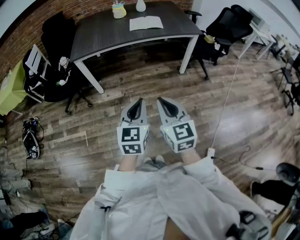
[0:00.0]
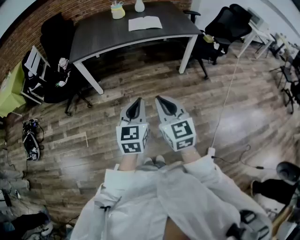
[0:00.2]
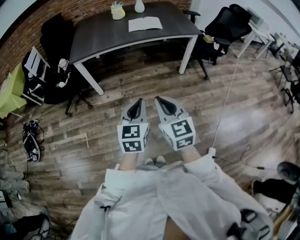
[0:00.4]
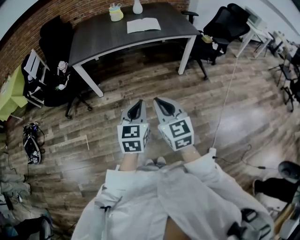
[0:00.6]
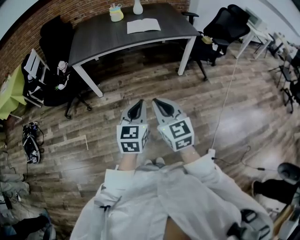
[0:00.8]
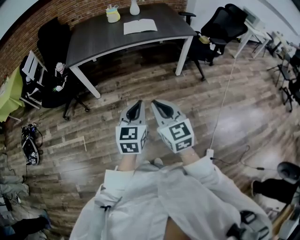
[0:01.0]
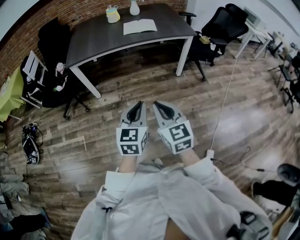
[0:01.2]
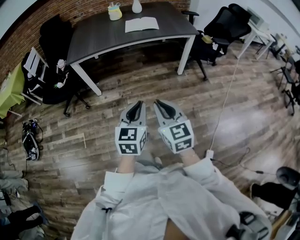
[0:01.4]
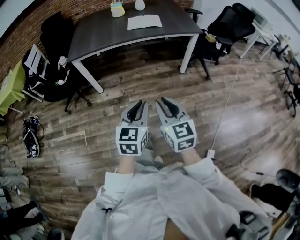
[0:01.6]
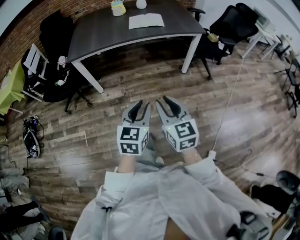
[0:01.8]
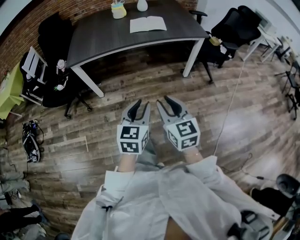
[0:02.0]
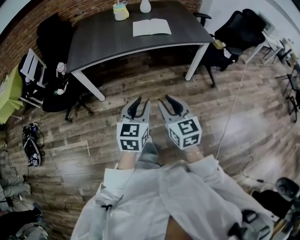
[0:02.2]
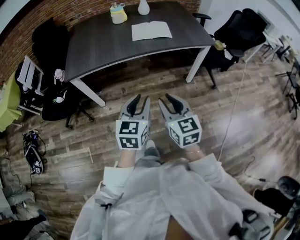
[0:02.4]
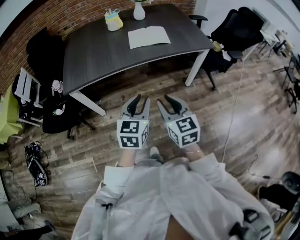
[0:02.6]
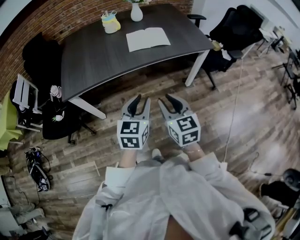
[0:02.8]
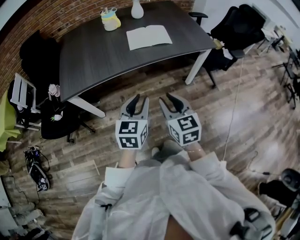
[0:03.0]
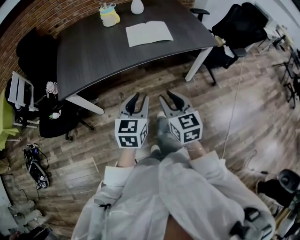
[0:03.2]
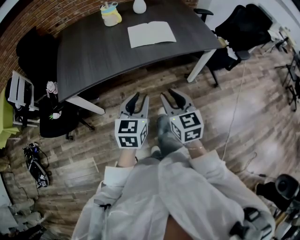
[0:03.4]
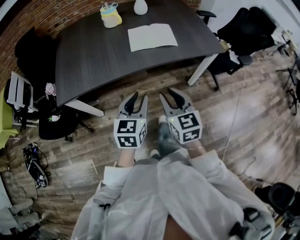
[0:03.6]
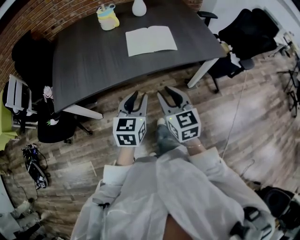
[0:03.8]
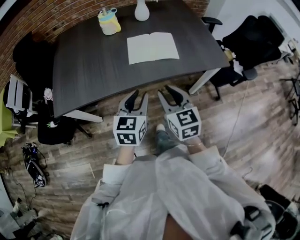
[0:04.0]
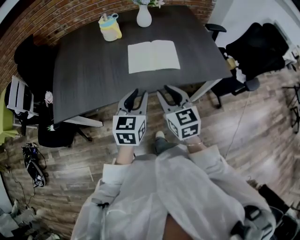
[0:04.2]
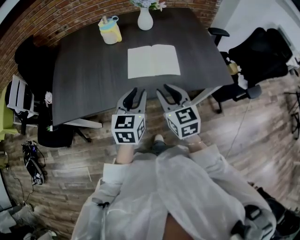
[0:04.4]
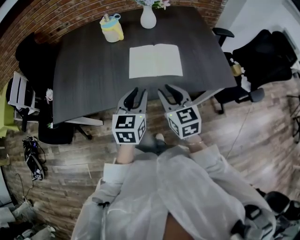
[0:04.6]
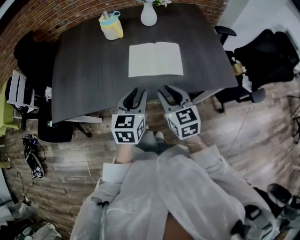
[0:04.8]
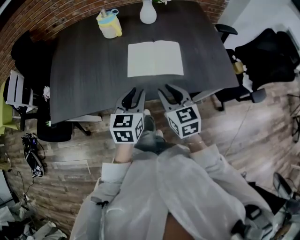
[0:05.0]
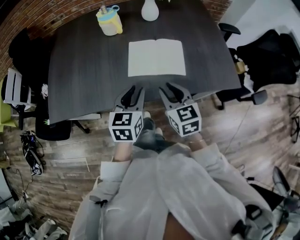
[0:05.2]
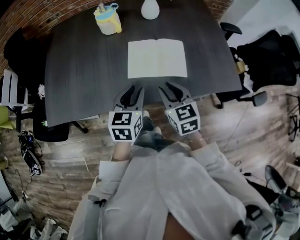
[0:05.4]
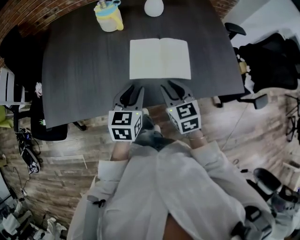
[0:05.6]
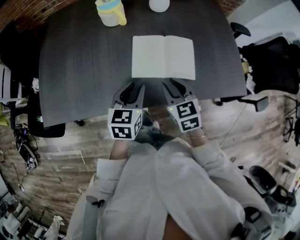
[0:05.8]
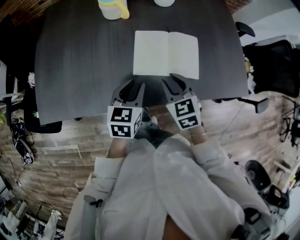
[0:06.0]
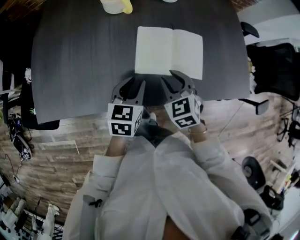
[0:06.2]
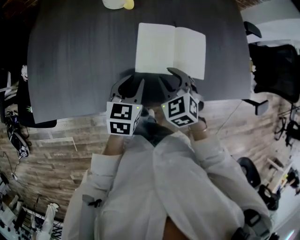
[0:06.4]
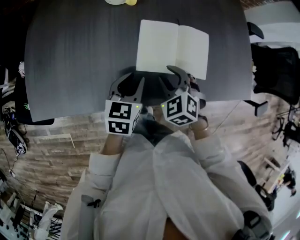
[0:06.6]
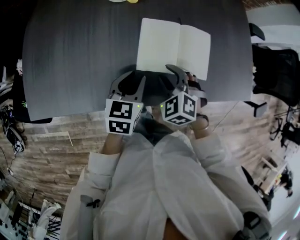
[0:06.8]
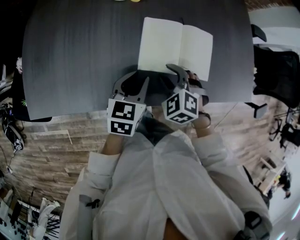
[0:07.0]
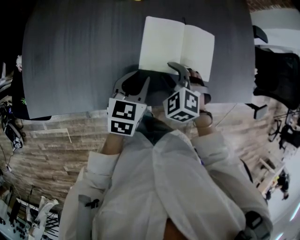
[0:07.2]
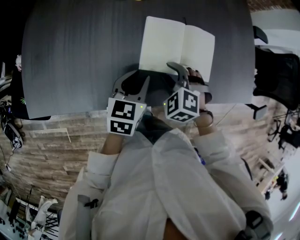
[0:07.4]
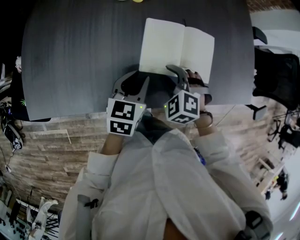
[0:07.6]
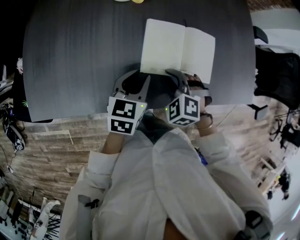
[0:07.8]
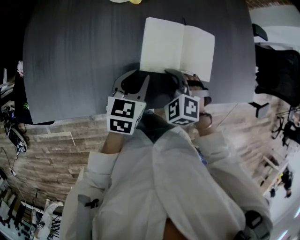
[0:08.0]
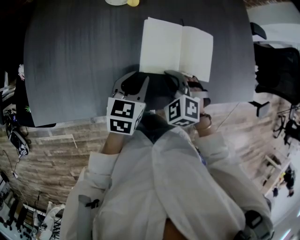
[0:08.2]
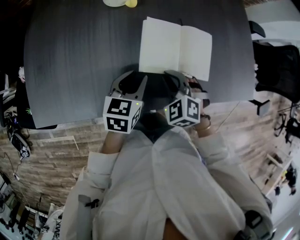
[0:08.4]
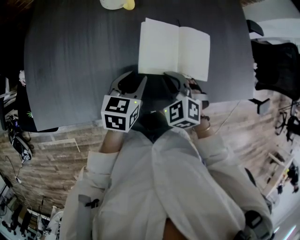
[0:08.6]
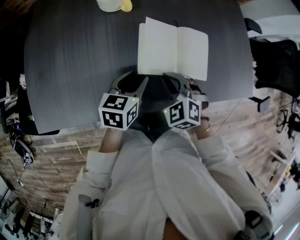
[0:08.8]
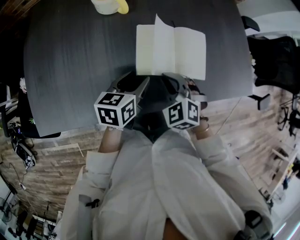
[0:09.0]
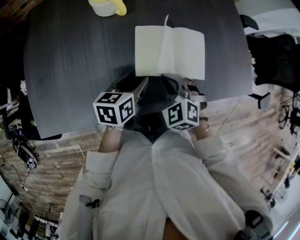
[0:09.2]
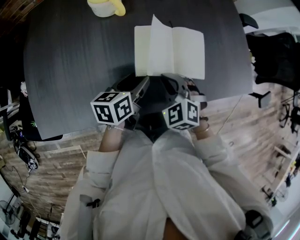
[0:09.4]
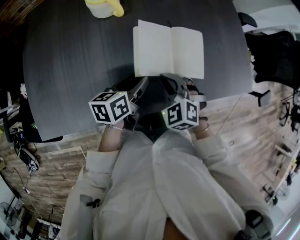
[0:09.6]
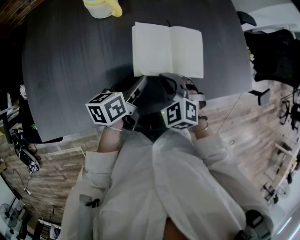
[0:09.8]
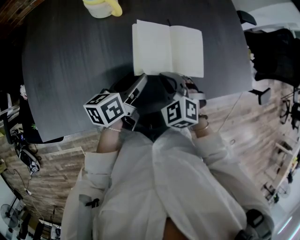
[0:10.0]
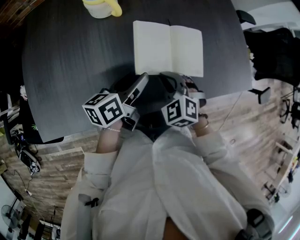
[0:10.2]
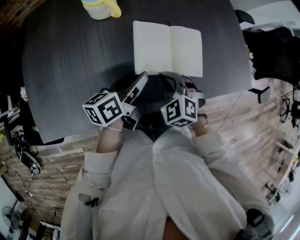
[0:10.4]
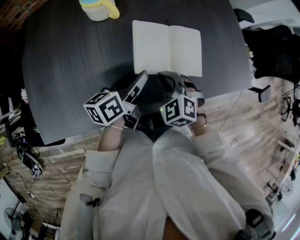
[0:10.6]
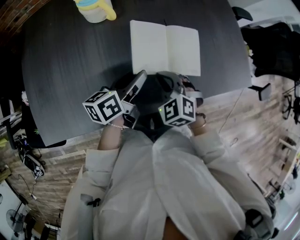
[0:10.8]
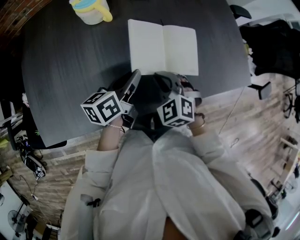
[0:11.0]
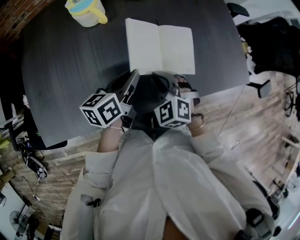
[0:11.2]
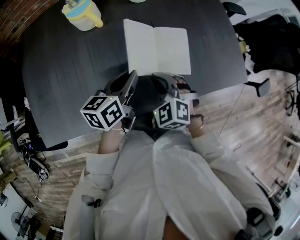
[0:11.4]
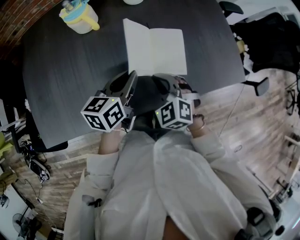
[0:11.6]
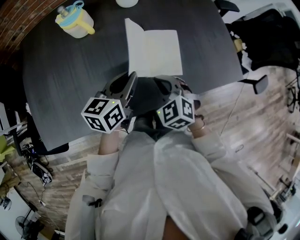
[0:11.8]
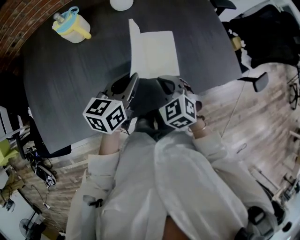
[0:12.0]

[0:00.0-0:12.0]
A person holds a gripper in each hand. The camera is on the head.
0:00.0 to 0:01.6: The grippers move only a little.
0:01.6 to 0:03.0: Both grippers move forward, roughly 35 cm.
0:03.0 to 0:04.4: The two grippers go some 30 cm forward.
0:04.4 to 0:06.0: Both grippers travel together forward and downward, roughly 20 cm. The right gripper turns by roughly 20 degrees.
0:06.0 to 0:07.6: The right gripper shifts roughly 5 cm downward, and twists roughly 40 degrees counterclockwise, seen from behind; the left gripper moves some 5 cm.
0:07.6 to 0:09.0: The left gripper opens; the right gripper closes up.
0:09.0 to 0:10.4: The left gripper swivels approximately 30 degrees.
0:10.4 to 0:12.0: The left gripper heads to the right and upward, covering roughly 10 cm, rotates about 30 degrees, and closes up. Meanwhile the right gripper is displaced to the right by about 10 cm.

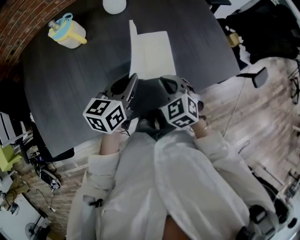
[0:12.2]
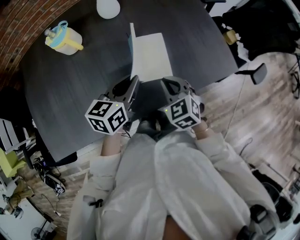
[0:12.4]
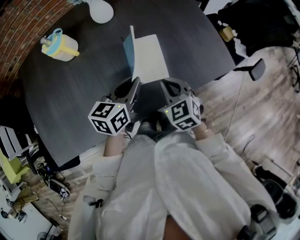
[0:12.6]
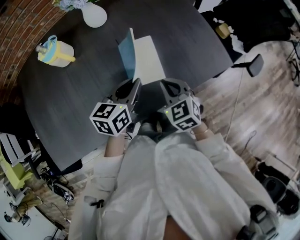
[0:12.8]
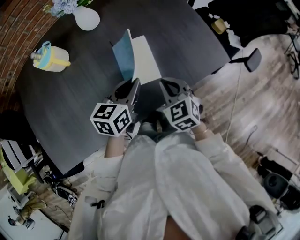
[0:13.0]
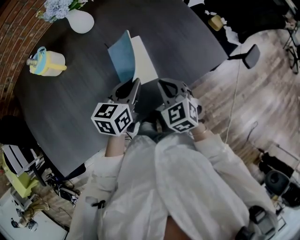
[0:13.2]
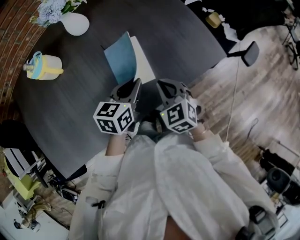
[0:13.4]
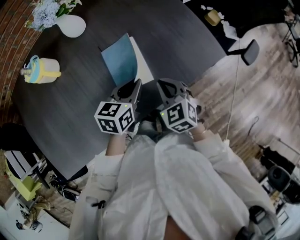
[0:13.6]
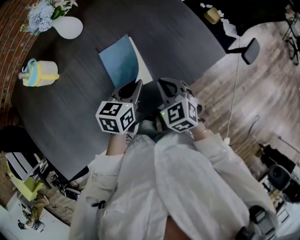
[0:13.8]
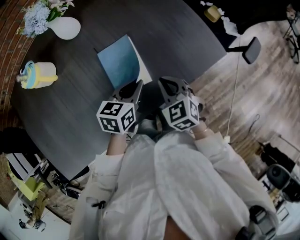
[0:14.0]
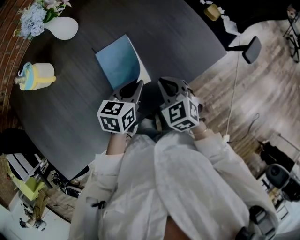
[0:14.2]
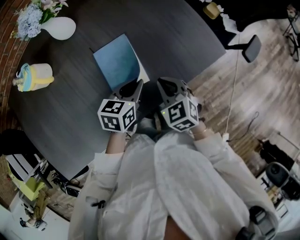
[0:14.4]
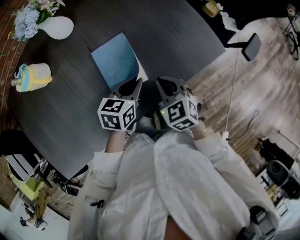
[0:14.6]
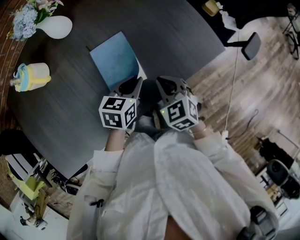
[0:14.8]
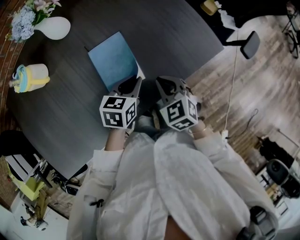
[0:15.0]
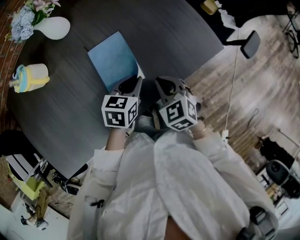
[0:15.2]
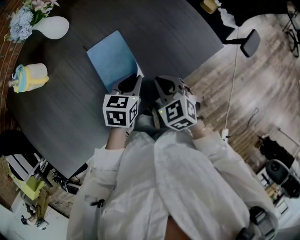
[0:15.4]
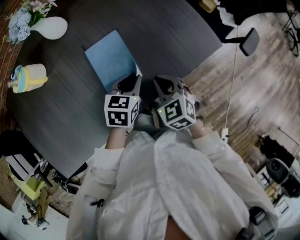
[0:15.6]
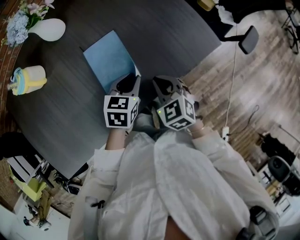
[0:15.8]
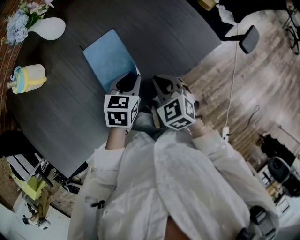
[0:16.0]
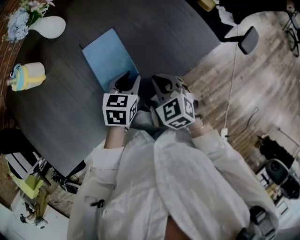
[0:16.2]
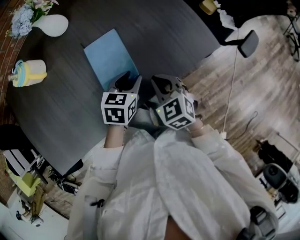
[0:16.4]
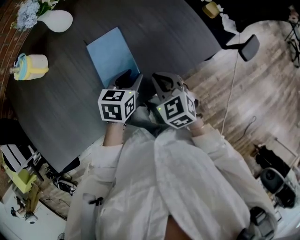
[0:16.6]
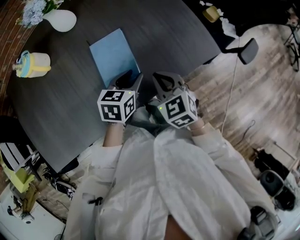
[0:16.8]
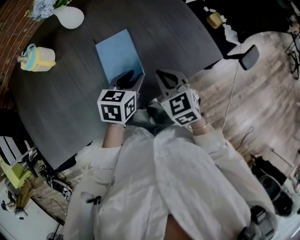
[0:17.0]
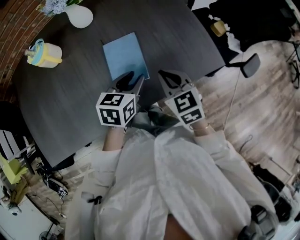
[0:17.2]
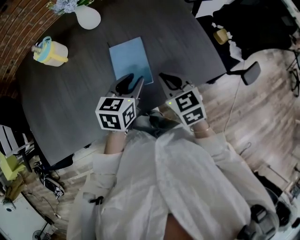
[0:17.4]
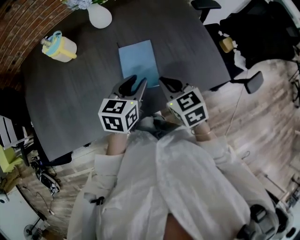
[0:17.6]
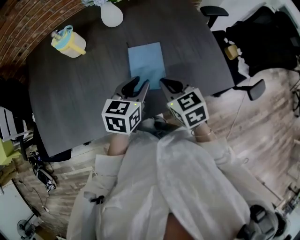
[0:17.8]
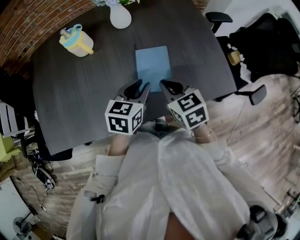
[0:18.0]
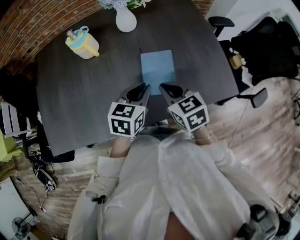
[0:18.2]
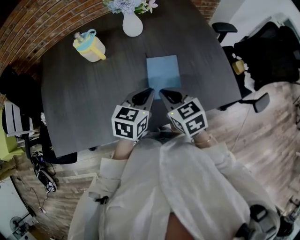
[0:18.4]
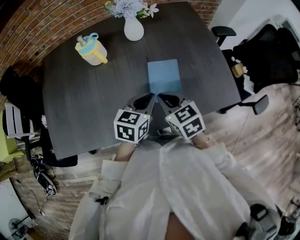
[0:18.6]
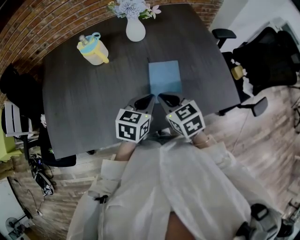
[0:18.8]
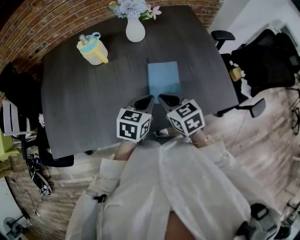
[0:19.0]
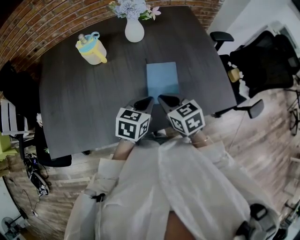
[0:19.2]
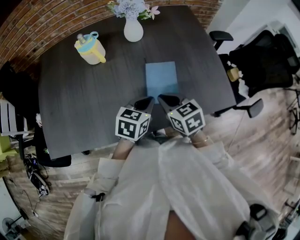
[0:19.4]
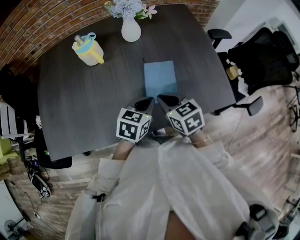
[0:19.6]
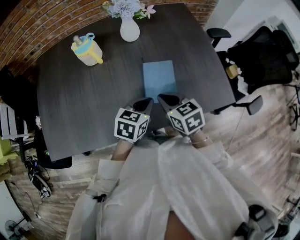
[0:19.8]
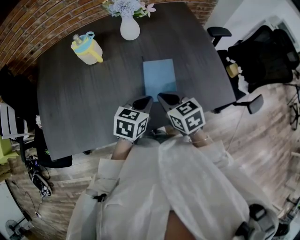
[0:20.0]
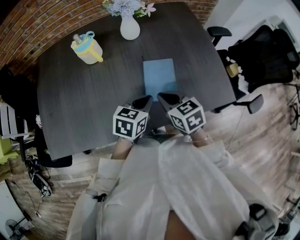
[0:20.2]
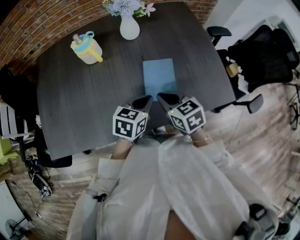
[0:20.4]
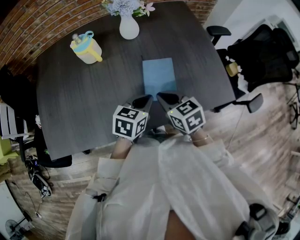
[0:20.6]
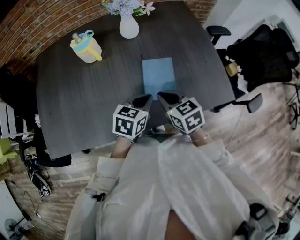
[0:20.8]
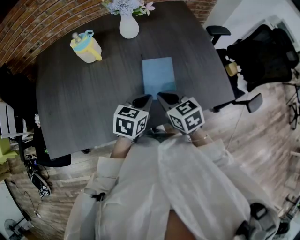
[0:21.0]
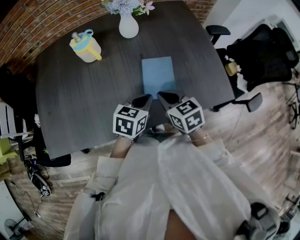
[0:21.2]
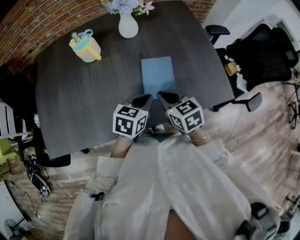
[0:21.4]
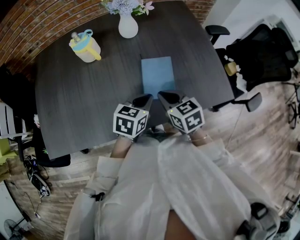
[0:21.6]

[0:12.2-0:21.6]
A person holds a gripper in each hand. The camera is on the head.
0:12.2 to 0:13.8: The right gripper is displaced to the right by some 10 cm. The left gripper moves to the right and downward, roughly 15 cm.
0:13.8 to 0:15.4: The left gripper shifts by approximately 5 cm.
0:15.4 to 0:17.0: The right gripper heads upward, covering some 5 cm.
0:17.0 to 0:18.4: The left gripper goes approximately 15 cm to the left and upward, and closes up; the right gripper travels to the left by about 15 cm.
0:18.4 to 0:20.0: The grippers move only a little.
0:20.0 to 0:21.6: Neither gripper changes place.

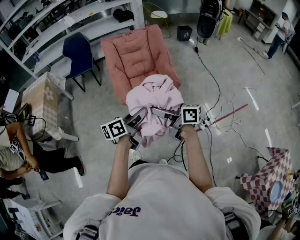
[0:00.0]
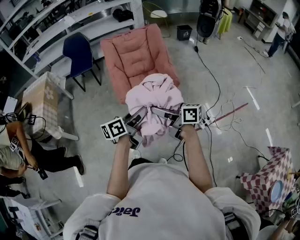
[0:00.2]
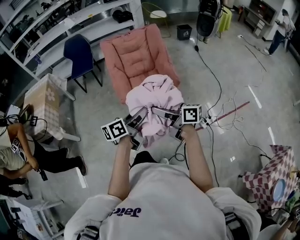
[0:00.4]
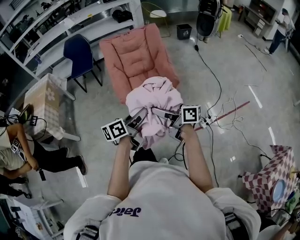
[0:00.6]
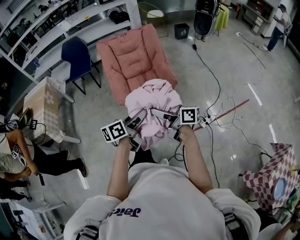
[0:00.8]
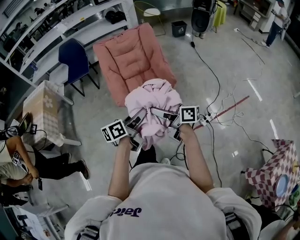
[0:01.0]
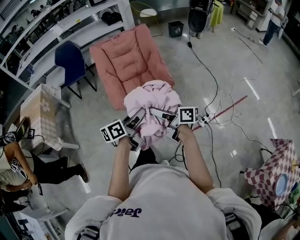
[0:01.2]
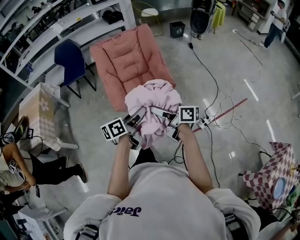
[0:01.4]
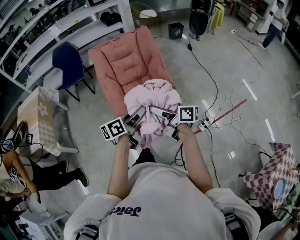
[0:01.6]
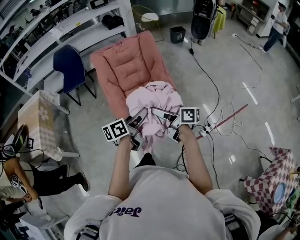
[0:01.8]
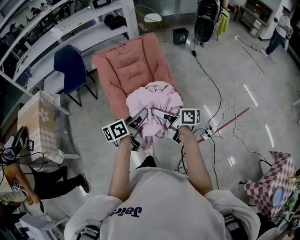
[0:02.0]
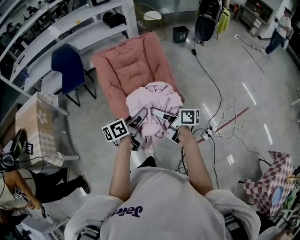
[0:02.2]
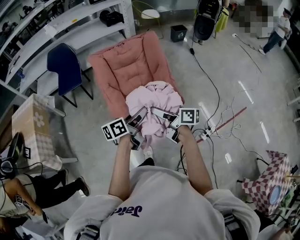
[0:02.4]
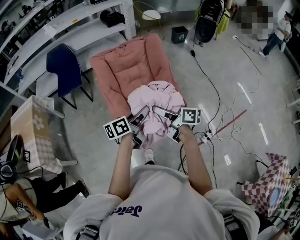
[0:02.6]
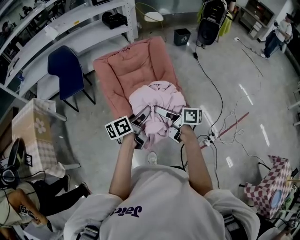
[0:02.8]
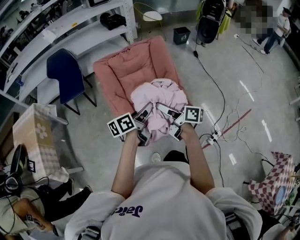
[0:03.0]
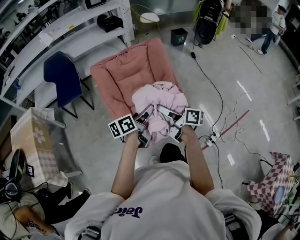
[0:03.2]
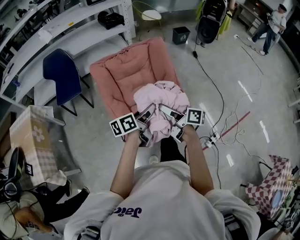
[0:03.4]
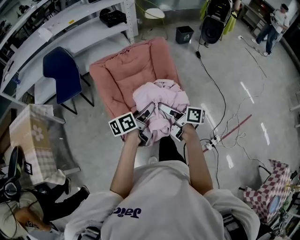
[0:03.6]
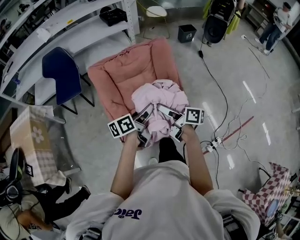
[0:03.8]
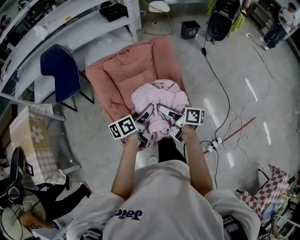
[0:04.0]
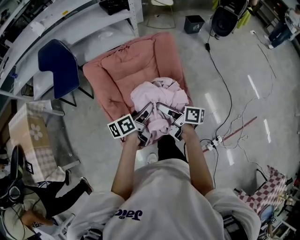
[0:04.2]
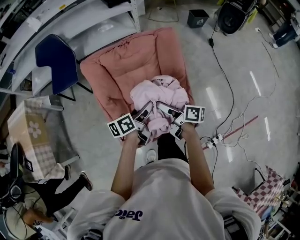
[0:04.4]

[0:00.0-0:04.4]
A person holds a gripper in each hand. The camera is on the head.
0:00.0 to 0:01.4: The right gripper shifts roughly 10 cm to the right and forward. Meanwhile the left gripper is displaced forward by roughly 5 cm.
0:01.4 to 0:03.0: Both grippers move forward, approximately 30 cm.
0:03.0 to 0:04.4: Both grippers move forward and downward, approximately 20 cm.